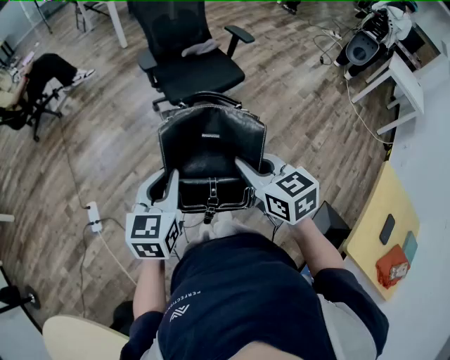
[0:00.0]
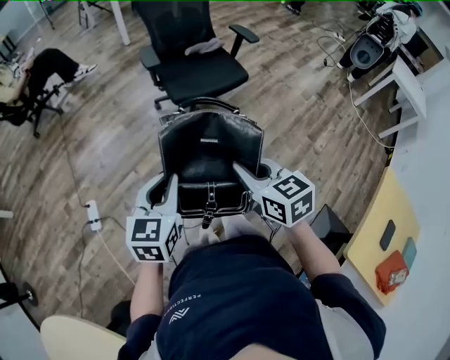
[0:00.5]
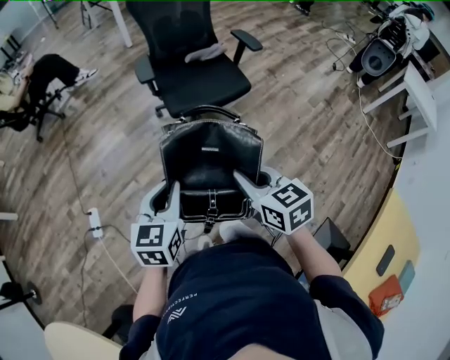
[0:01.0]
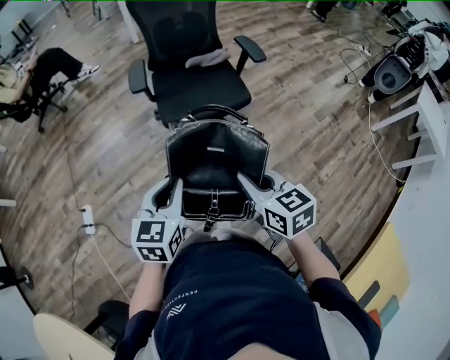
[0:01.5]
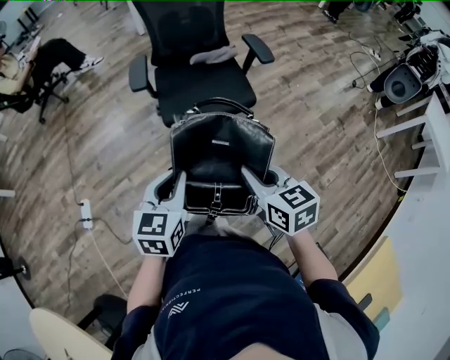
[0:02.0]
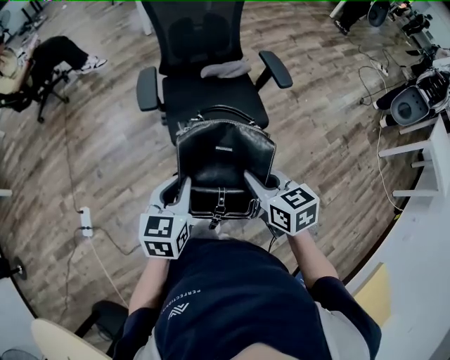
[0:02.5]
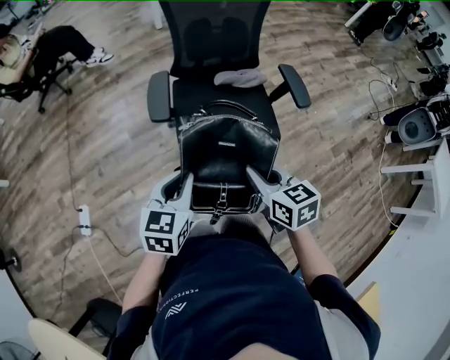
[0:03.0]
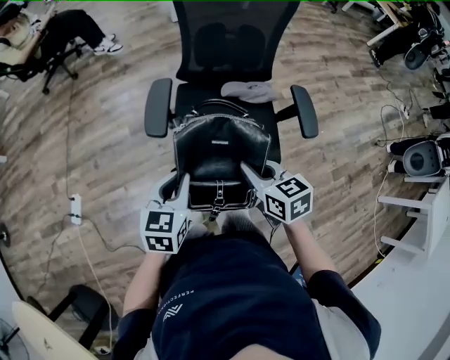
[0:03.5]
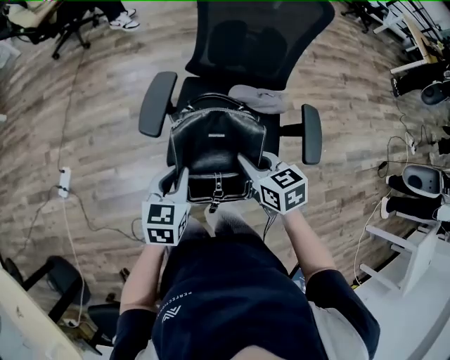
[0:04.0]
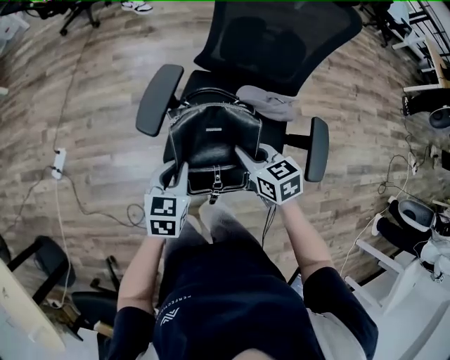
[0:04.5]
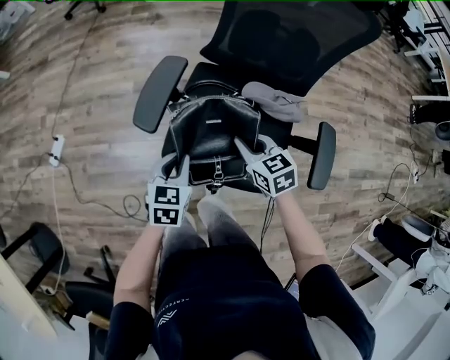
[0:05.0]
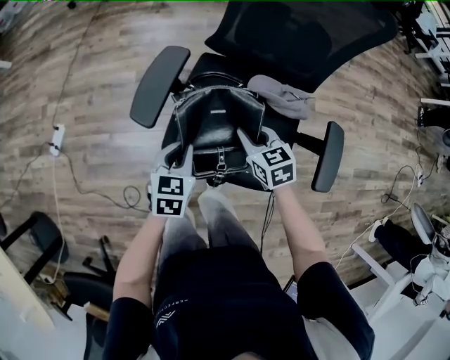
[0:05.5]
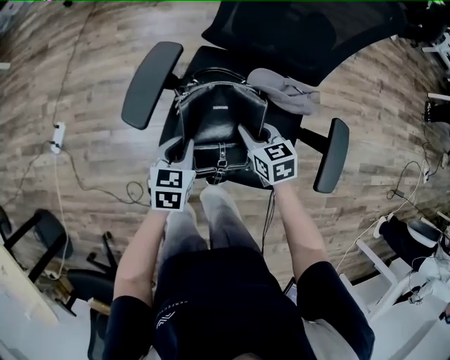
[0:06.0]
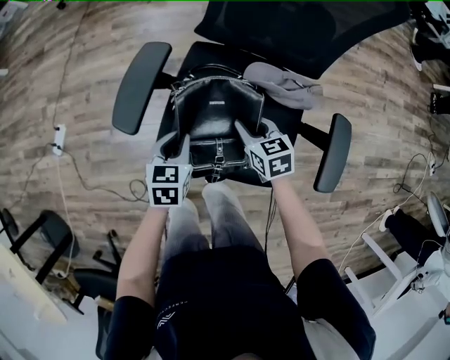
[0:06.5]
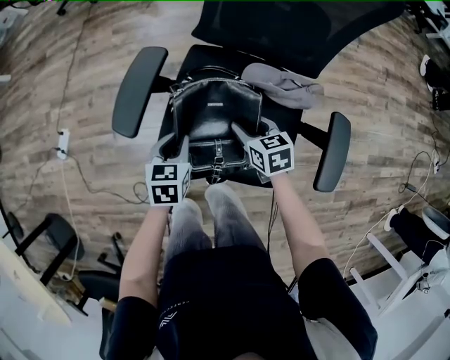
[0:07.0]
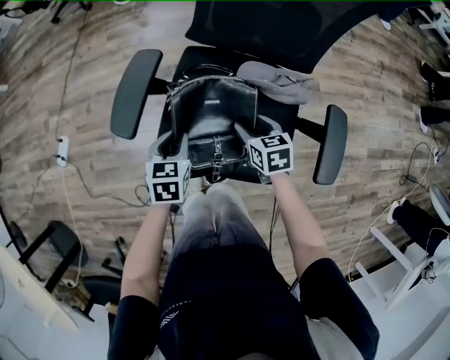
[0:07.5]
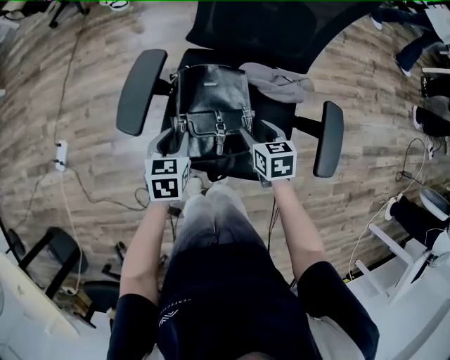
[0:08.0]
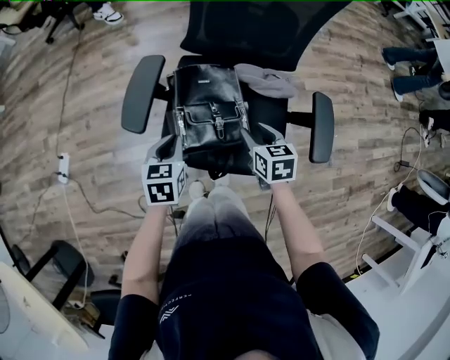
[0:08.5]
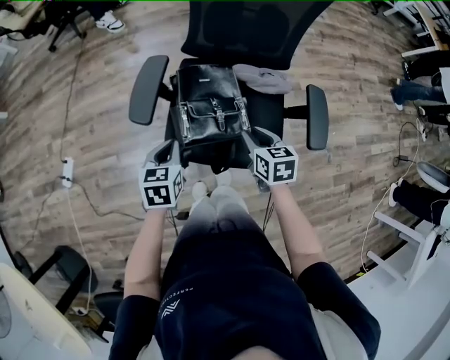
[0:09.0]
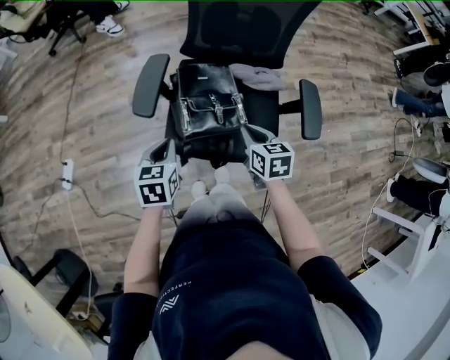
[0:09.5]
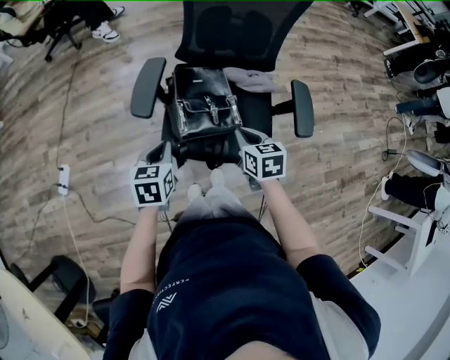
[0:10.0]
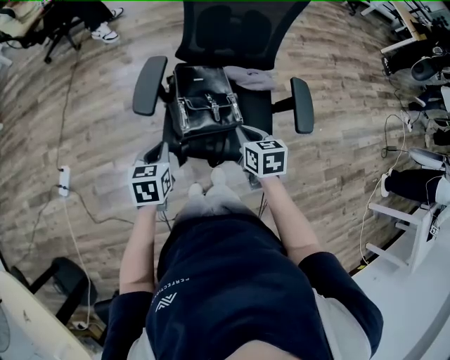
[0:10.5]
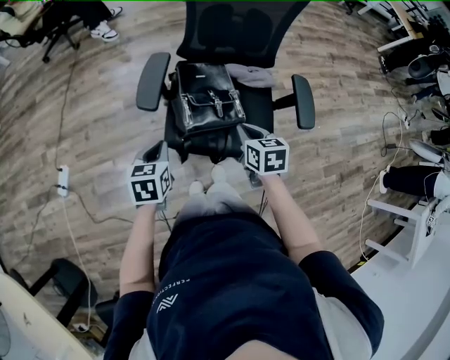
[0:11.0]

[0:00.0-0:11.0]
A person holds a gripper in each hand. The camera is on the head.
0:00.0 to 0:02.0: The two grippers go roughly 25 cm forward and to the right.
0:02.0 to 0:03.5: The grippers both shift forward by approximately 30 cm.
0:03.5 to 0:05.5: The right gripper goes approximately 25 cm forward and downward, and rotates approximately 20 degrees; the left gripper moves downward, forward and to the right, about 20 cm, and swivels approximately 20 degrees.
0:05.5 to 0:07.5: The right gripper shifts some 5 cm downward and to the right, and opens its fingers.
0:07.5 to 0:09.0: The two grippers go roughly 10 cm upward and backward. The right gripper closes up. The left gripper closes its fingers.
0:09.0 to 0:11.0: The right gripper shifts by roughly 5 cm, and closes its fingers; the left gripper goes roughly 5 cm to the left.

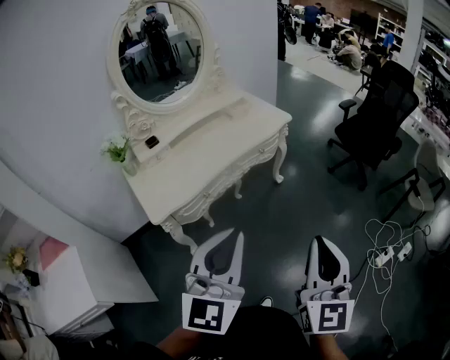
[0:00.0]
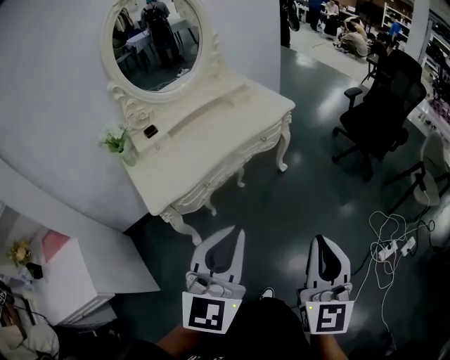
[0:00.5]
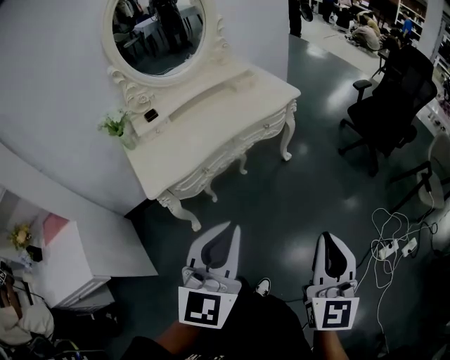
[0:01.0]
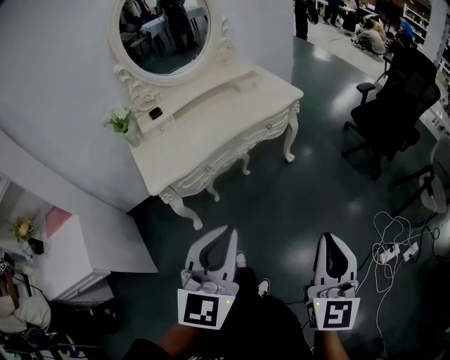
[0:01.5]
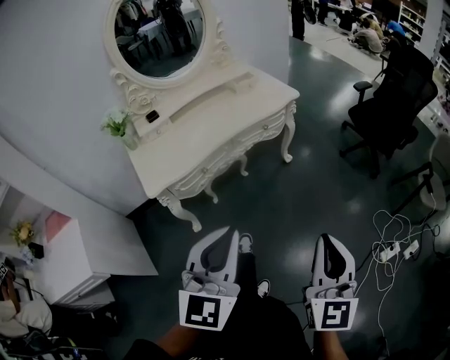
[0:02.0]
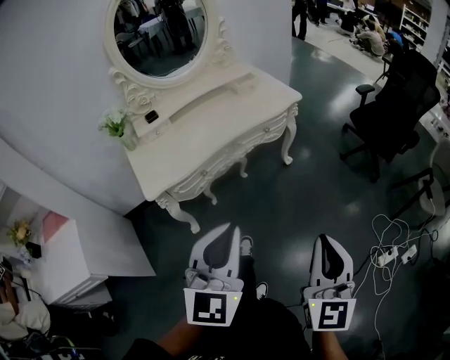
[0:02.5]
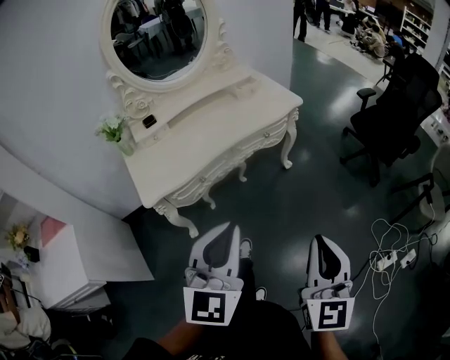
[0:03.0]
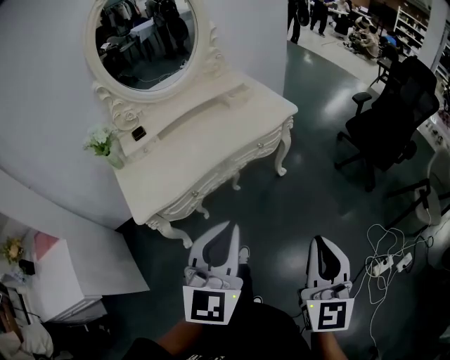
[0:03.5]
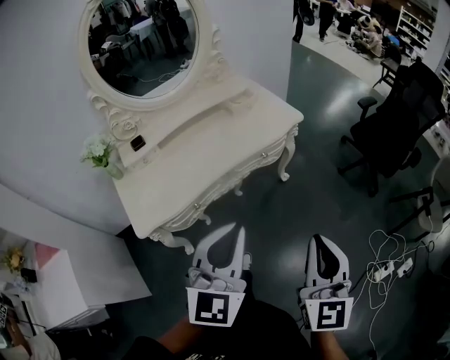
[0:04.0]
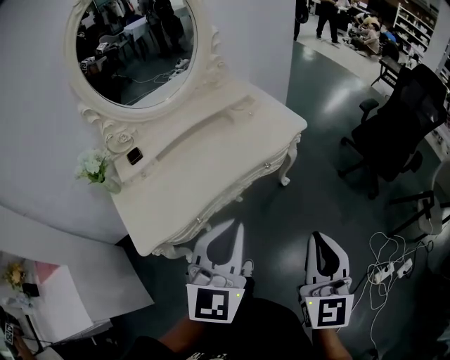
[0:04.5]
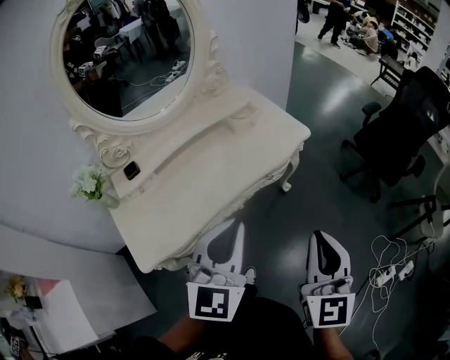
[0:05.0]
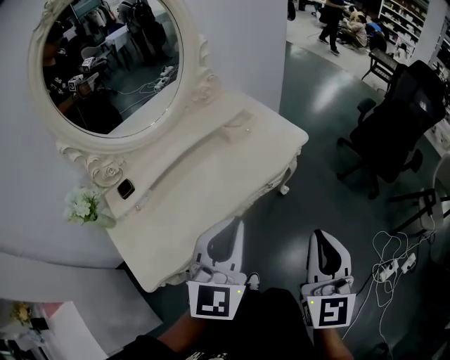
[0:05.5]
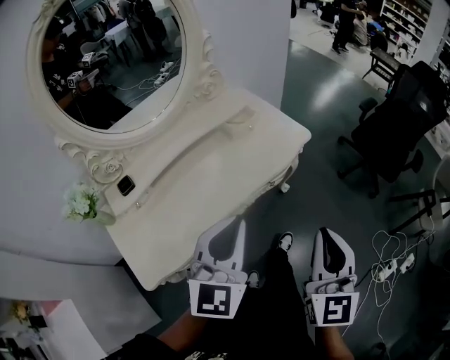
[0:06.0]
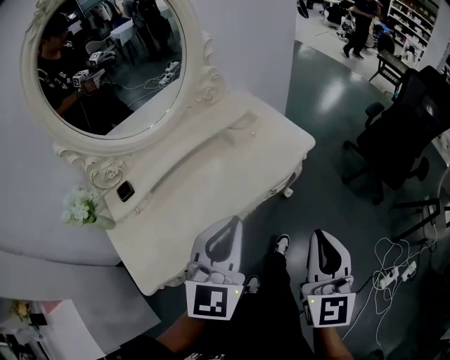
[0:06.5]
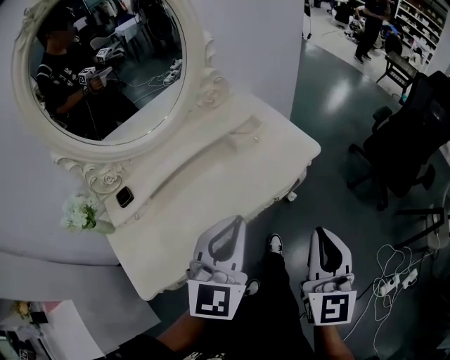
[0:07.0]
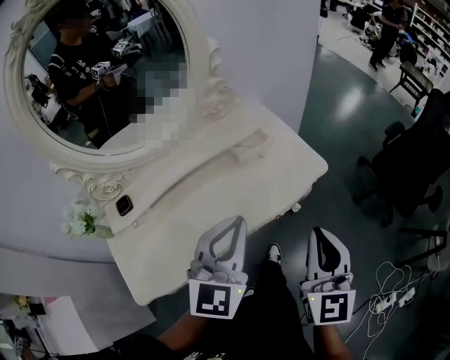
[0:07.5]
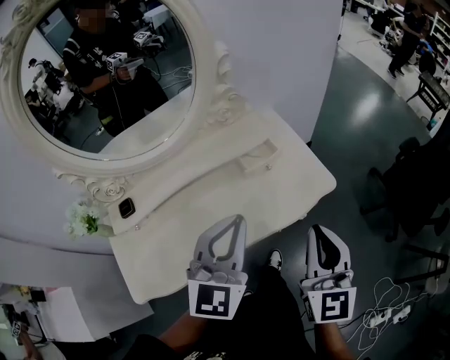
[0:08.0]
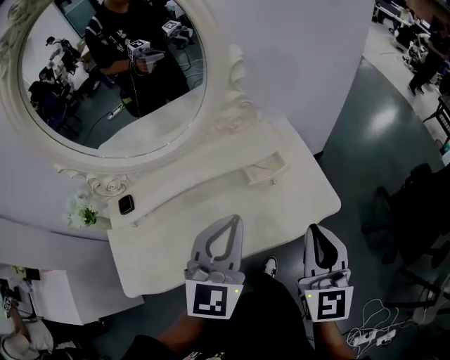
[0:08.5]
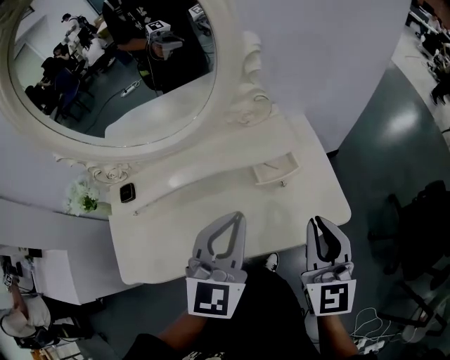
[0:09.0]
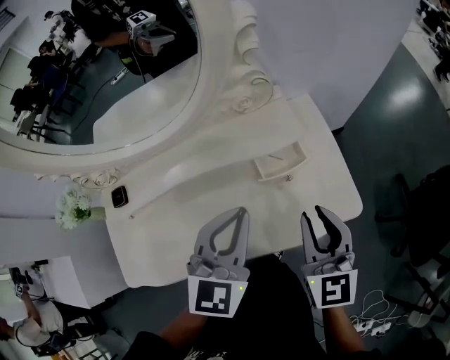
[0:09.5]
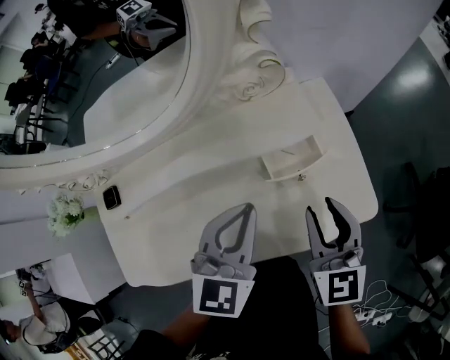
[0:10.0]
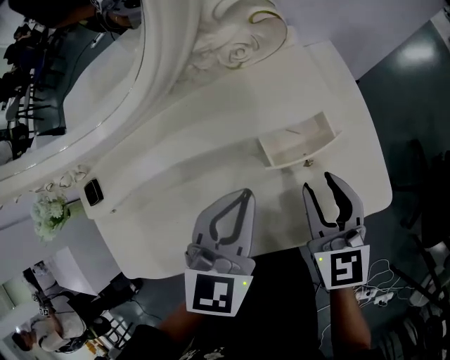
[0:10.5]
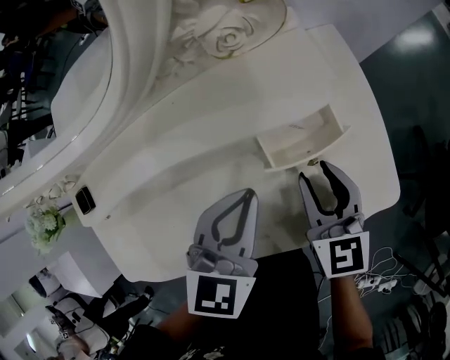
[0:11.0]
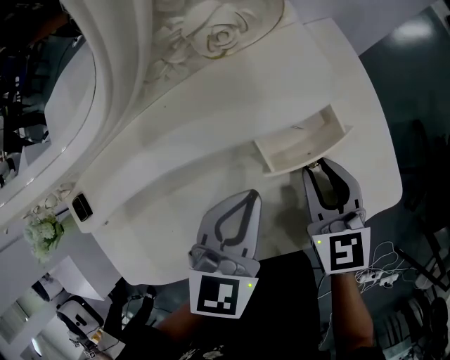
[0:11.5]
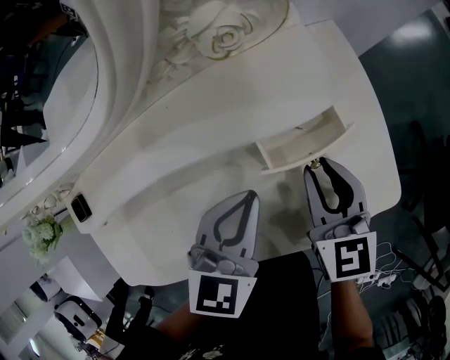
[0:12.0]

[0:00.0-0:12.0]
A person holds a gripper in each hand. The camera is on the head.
0:00.0 to 0:02.0: The left gripper changes place by roughly 5 cm. The right gripper goes about 5 cm to the right.
0:02.0 to 0:04.0: The grippers both shift forward by approximately 15 cm.
0:04.0 to 0:06.0: The grippers both shift forward and to the left by roughly 20 cm.
0:06.0 to 0:08.0: Both grippers move forward, roughly 20 cm.
0:08.0 to 0:10.0: The grippers both shift forward and downward by some 20 cm. The right gripper changes its angle by some 30 degrees, and opens its fingers.
0:10.0 to 0:12.0: The right gripper shifts approximately 10 cm downward and forward. Meanwhile the left gripper shifts some 10 cm downward.

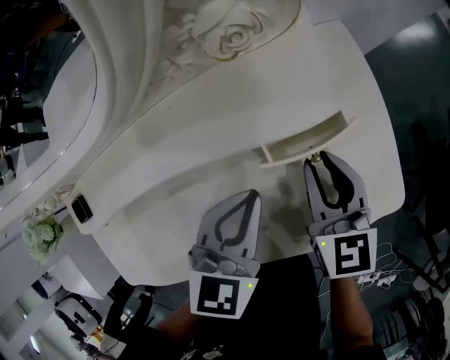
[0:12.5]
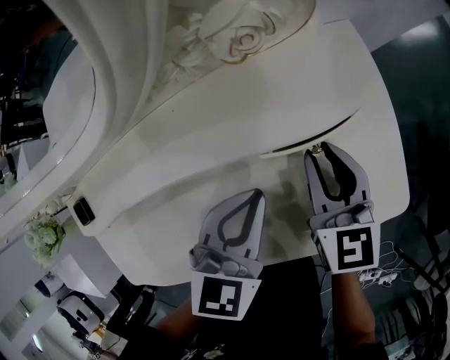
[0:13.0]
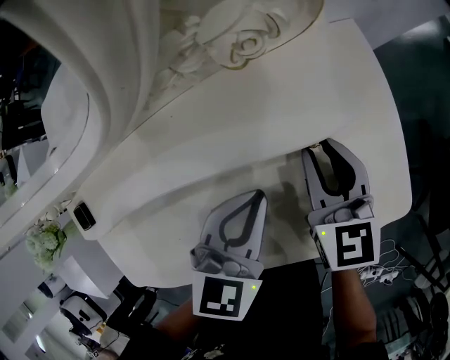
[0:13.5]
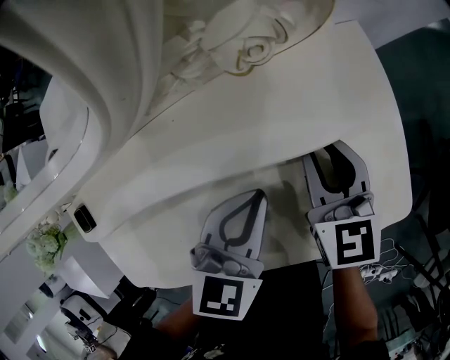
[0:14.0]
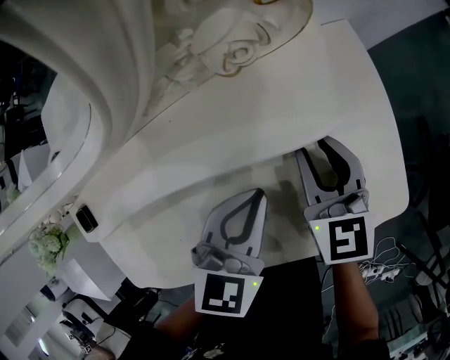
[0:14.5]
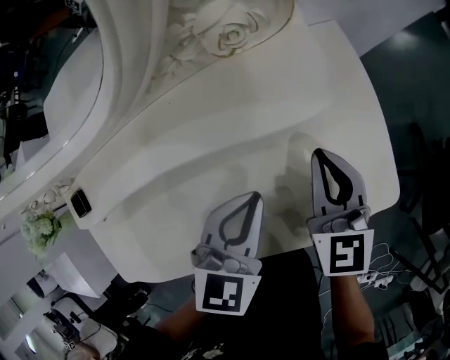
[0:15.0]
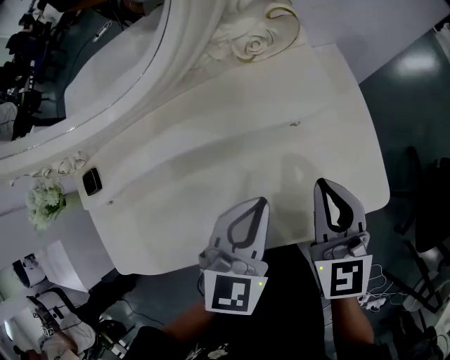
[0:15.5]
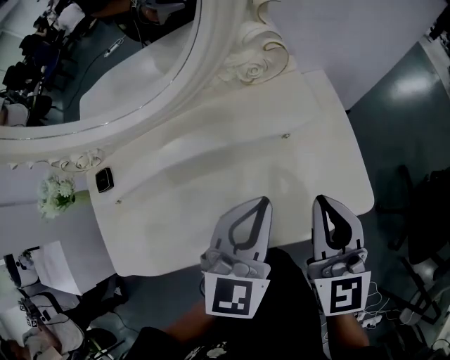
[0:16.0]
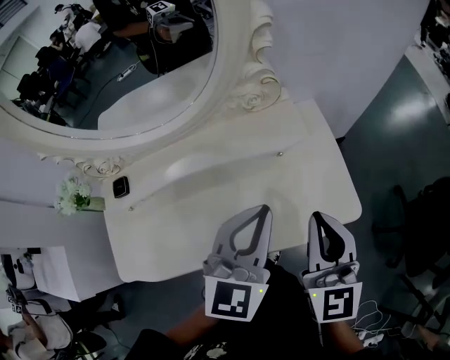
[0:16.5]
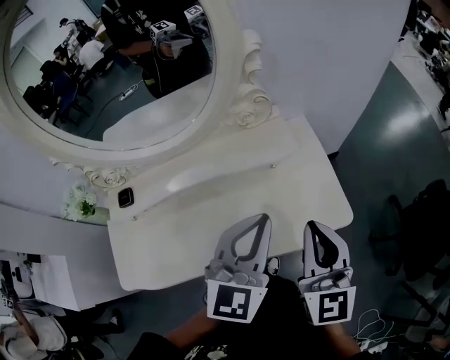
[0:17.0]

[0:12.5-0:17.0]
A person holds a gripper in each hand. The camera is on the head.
0:12.5 to 0:14.5: The grippers move only a little.
0:14.5 to 0:17.0: The grippers both shift upward and backward by approximately 25 cm. The left gripper swivels roughly 30 degrees, while the right gripper turns by roughly 30 degrees, and closes.
